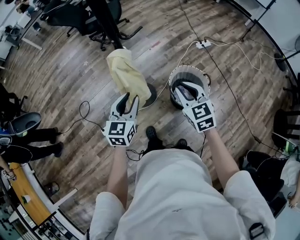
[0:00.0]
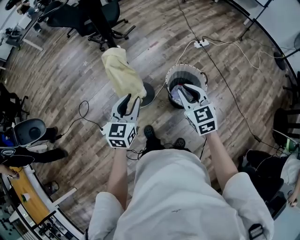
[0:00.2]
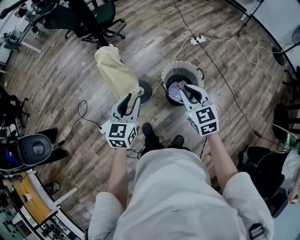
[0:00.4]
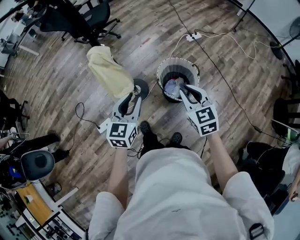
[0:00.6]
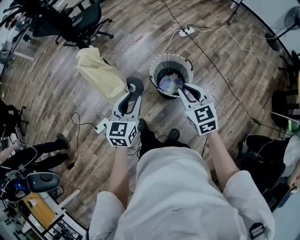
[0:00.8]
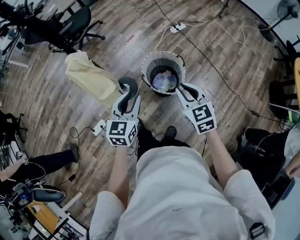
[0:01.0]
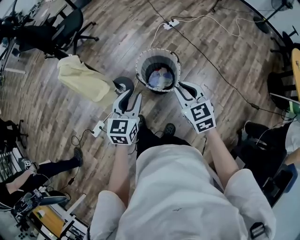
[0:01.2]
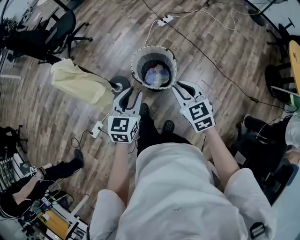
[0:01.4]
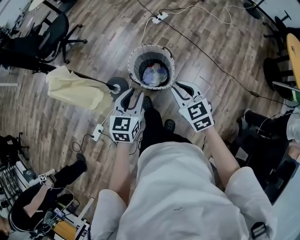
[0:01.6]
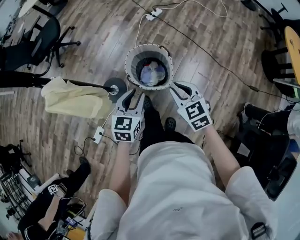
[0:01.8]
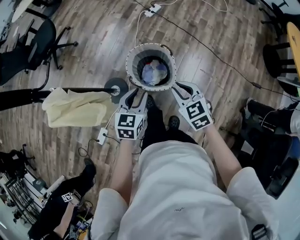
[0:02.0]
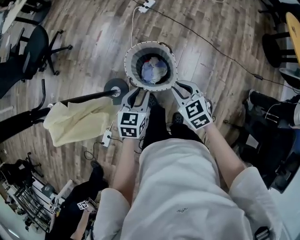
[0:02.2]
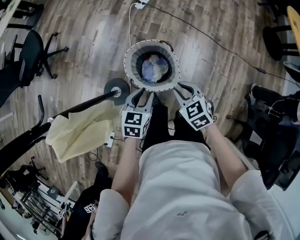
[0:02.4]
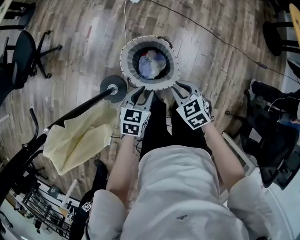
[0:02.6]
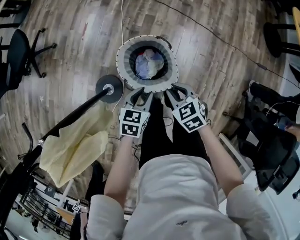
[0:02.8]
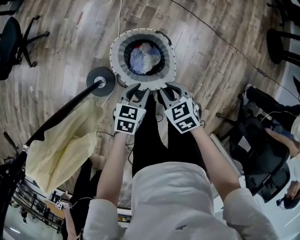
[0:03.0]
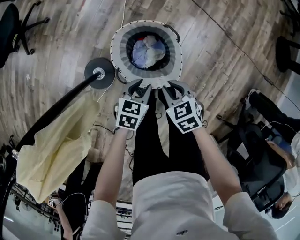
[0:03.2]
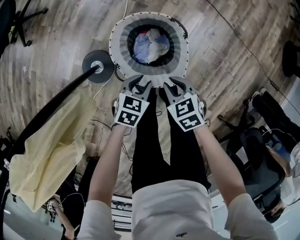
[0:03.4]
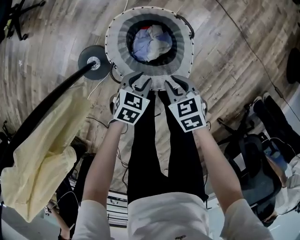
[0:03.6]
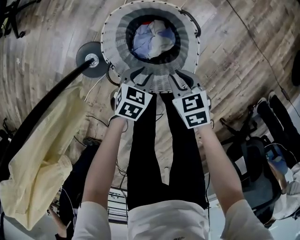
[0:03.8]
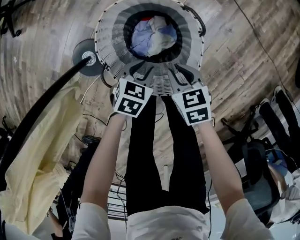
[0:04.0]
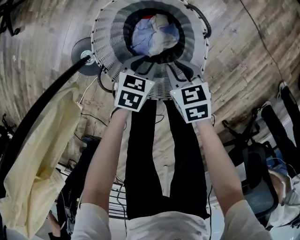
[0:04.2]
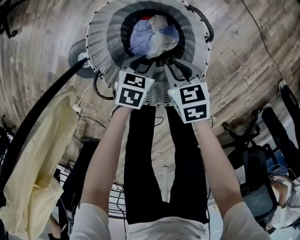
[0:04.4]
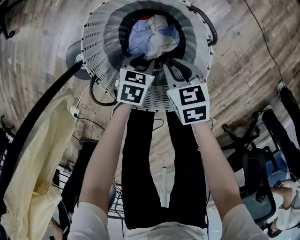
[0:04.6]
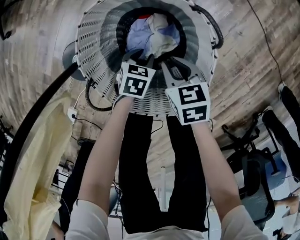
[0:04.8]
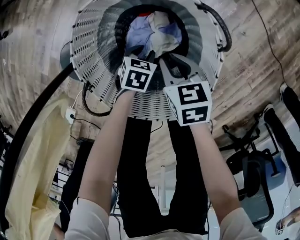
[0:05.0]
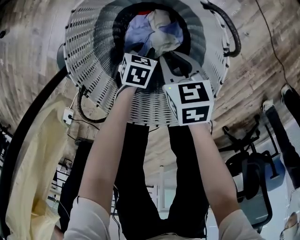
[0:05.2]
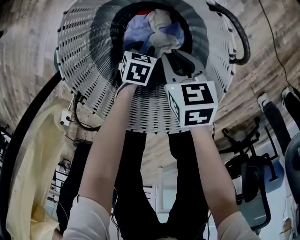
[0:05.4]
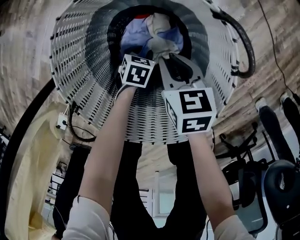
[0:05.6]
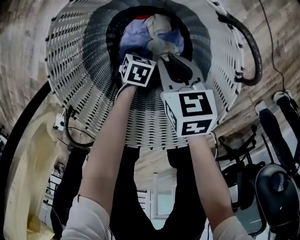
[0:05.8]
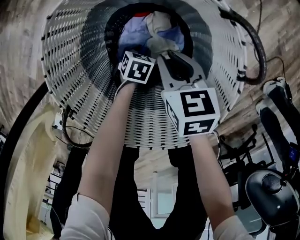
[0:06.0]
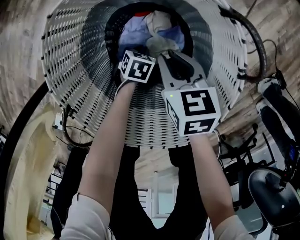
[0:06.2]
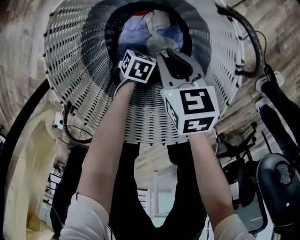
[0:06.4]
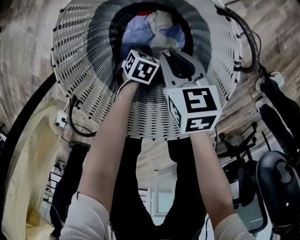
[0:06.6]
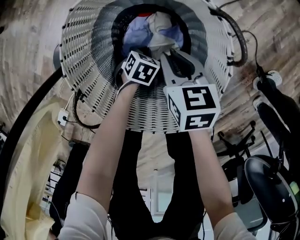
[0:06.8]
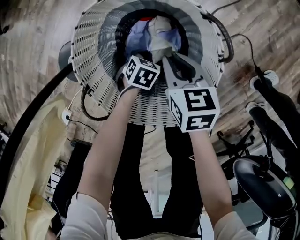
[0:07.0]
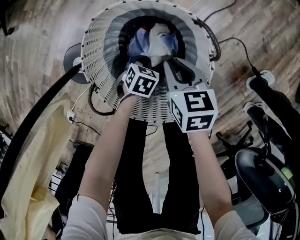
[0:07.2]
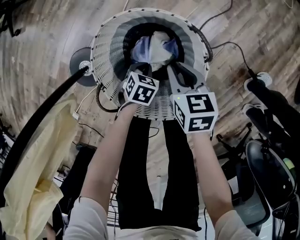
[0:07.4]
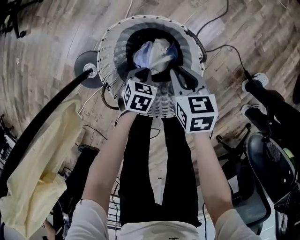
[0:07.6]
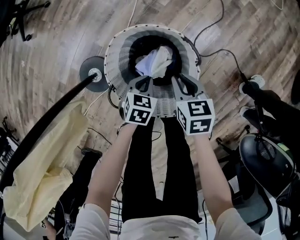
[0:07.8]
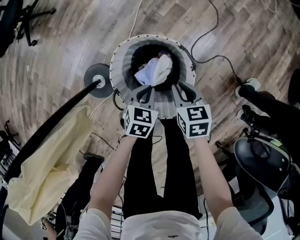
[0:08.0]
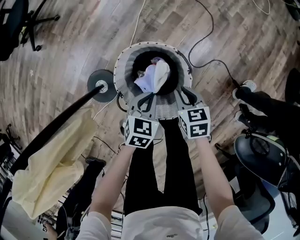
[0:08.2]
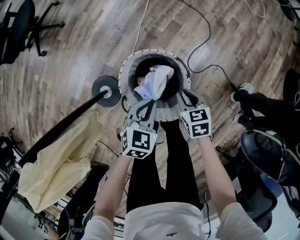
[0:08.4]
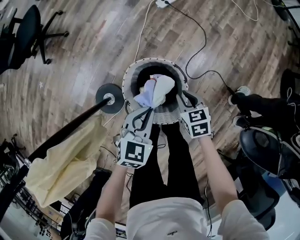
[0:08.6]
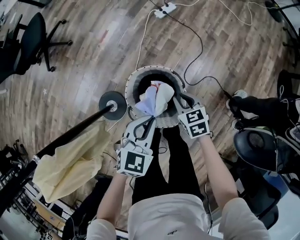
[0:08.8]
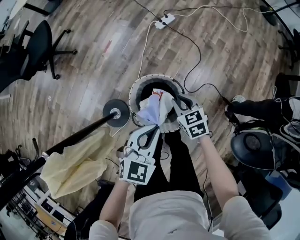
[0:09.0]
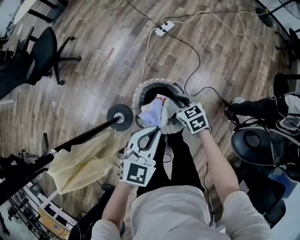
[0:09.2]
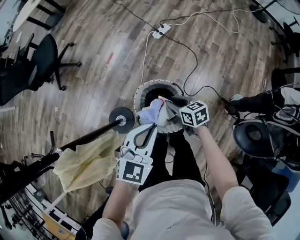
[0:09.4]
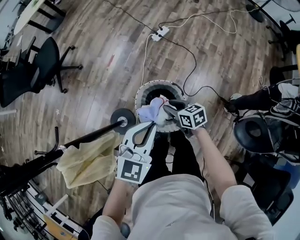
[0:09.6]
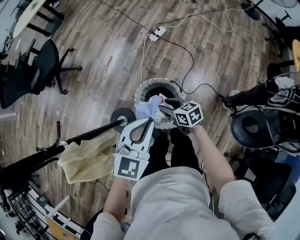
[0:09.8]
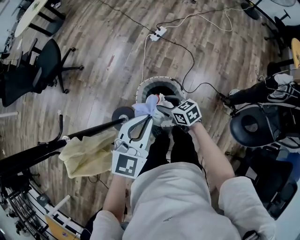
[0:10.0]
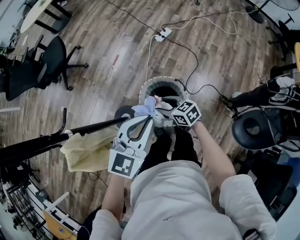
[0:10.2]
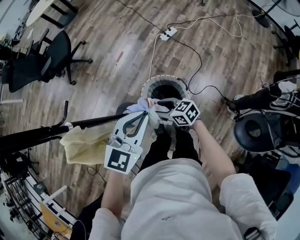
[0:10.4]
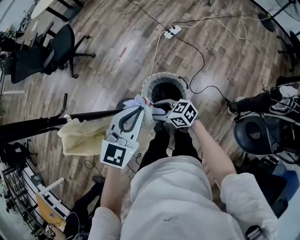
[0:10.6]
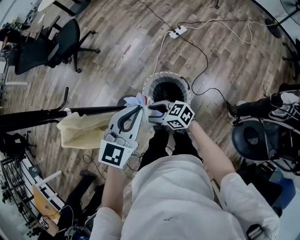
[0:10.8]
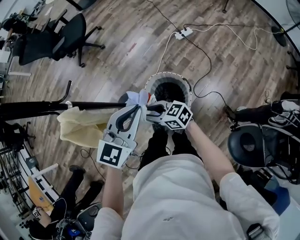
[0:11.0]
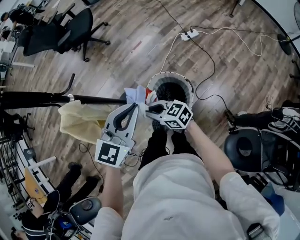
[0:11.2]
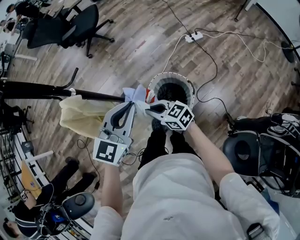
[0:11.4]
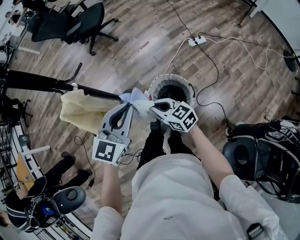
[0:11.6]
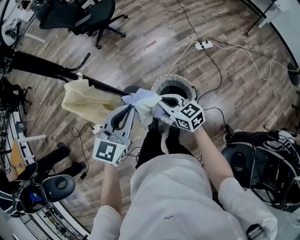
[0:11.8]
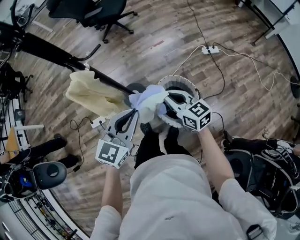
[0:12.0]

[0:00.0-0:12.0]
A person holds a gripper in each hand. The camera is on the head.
0:00.0 to 0:01.6: The left gripper travels to the right by some 25 cm, and changes its angle by approximately 20 degrees. Meanwhile the right gripper moves to the right and backward, roughly 25 cm.
0:01.6 to 0:03.0: The two grippers go about 30 cm downward and forward. The left gripper turns by some 30 degrees. Meanwhile the right gripper turns by roughly 30 degrees.
0:03.0 to 0:04.4: The two grippers go roughly 30 cm downward.
0:04.4 to 0:06.0: The right gripper shifts some 10 cm downward; the left gripper shifts some 25 cm downward.
0:06.0 to 0:07.6: The two grippers go roughly 20 cm upward. The left gripper closes.
0:07.6 to 0:09.0: The right gripper heads upward, covering roughly 25 cm, while the left gripper shifts some 50 cm upward, and tilts its fingers roughly 30 degrees upward.
0:09.0 to 0:10.4: The right gripper moves to the left, backward and upward, roughly 20 cm, turns by roughly 40 degrees, and opens up, while the left gripper goes about 20 cm upward and to the left.
0:10.4 to 0:12.0: The left gripper shifts some 10 cm to the left, and swivels roughly 40 degrees, while the right gripper is displaced upward by some 10 cm, swivels roughly 20 degrees, and closes up.

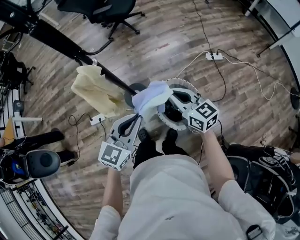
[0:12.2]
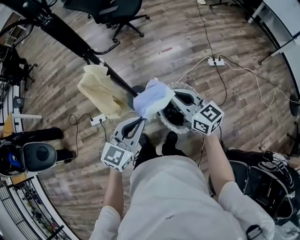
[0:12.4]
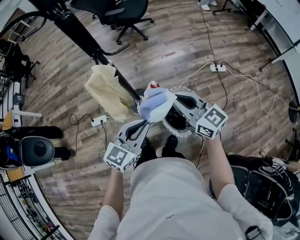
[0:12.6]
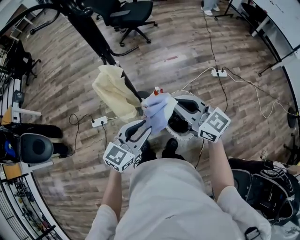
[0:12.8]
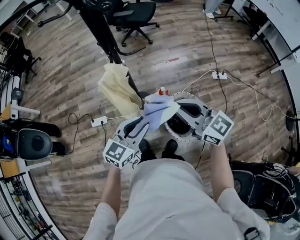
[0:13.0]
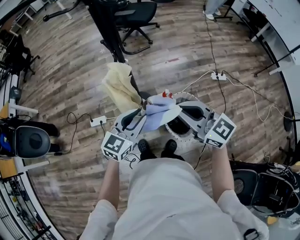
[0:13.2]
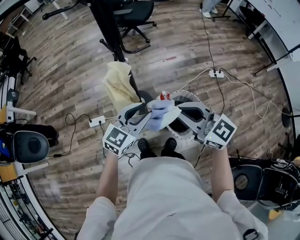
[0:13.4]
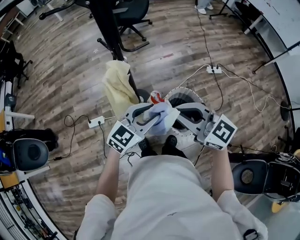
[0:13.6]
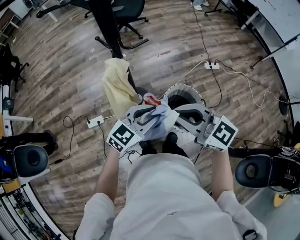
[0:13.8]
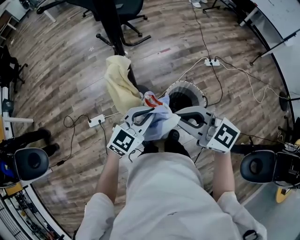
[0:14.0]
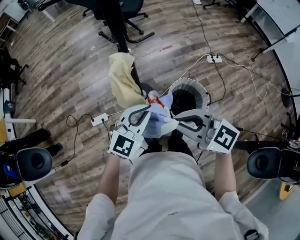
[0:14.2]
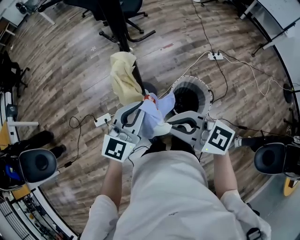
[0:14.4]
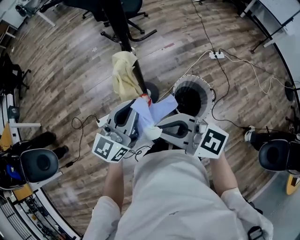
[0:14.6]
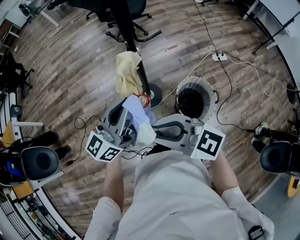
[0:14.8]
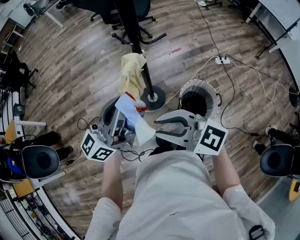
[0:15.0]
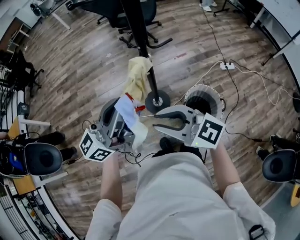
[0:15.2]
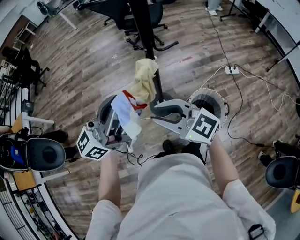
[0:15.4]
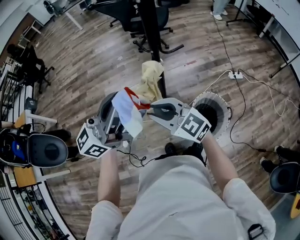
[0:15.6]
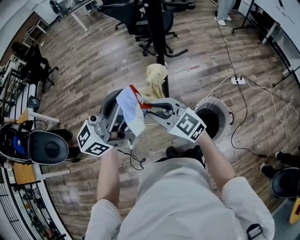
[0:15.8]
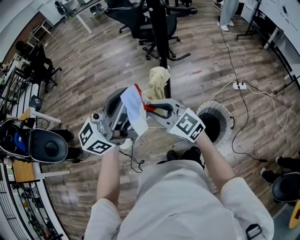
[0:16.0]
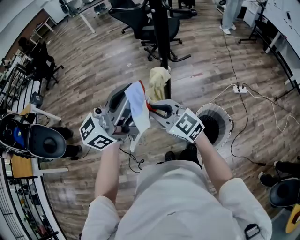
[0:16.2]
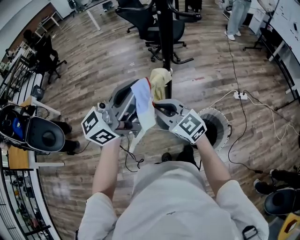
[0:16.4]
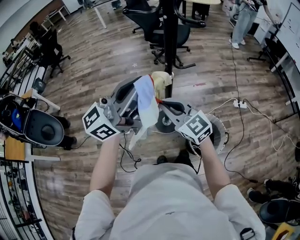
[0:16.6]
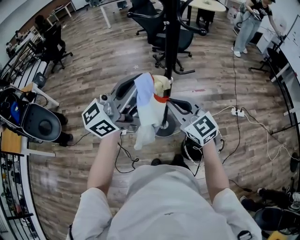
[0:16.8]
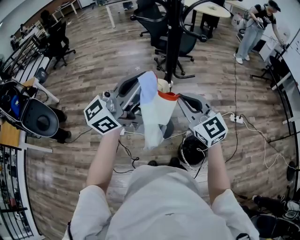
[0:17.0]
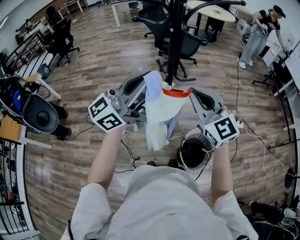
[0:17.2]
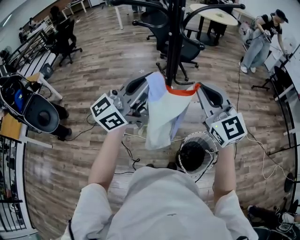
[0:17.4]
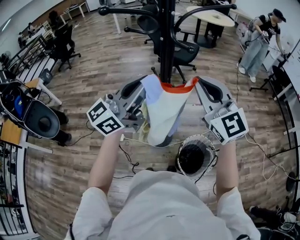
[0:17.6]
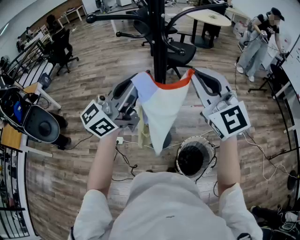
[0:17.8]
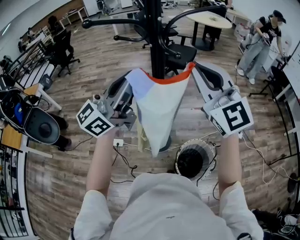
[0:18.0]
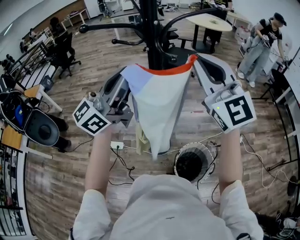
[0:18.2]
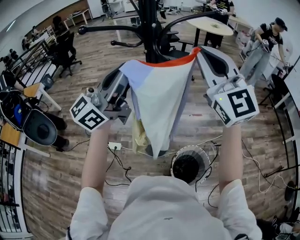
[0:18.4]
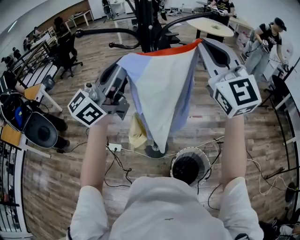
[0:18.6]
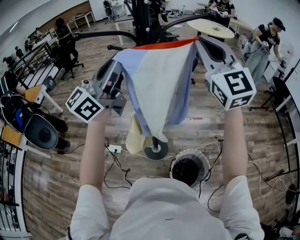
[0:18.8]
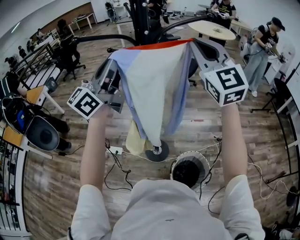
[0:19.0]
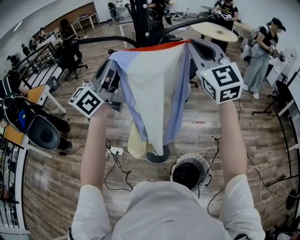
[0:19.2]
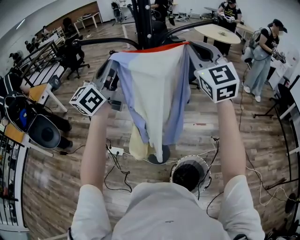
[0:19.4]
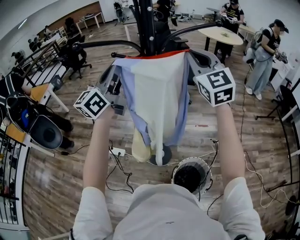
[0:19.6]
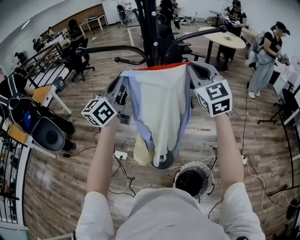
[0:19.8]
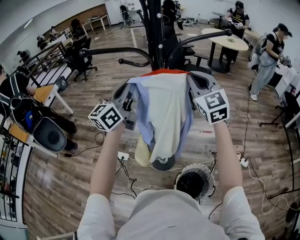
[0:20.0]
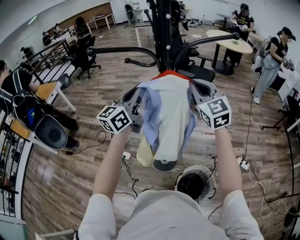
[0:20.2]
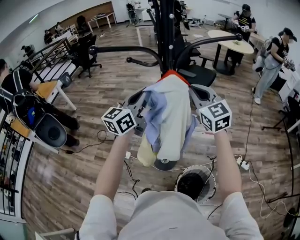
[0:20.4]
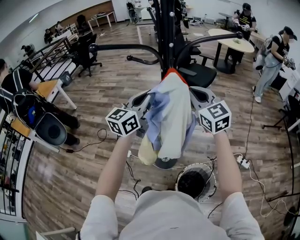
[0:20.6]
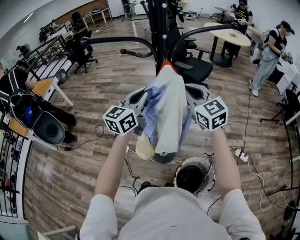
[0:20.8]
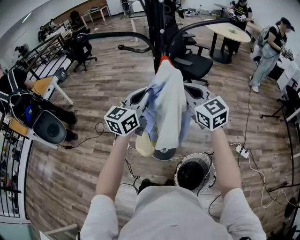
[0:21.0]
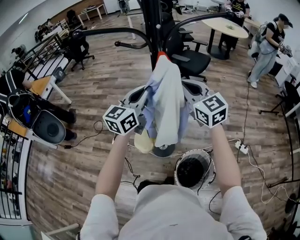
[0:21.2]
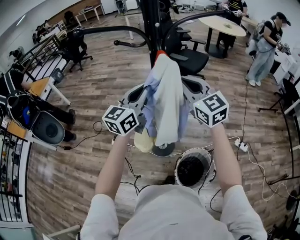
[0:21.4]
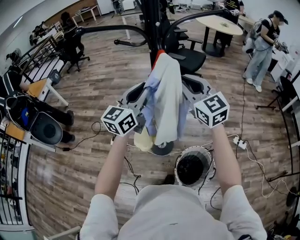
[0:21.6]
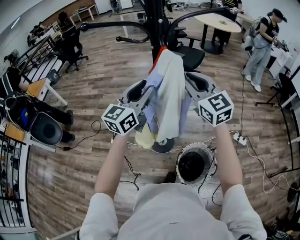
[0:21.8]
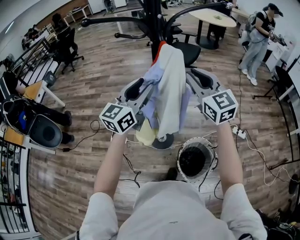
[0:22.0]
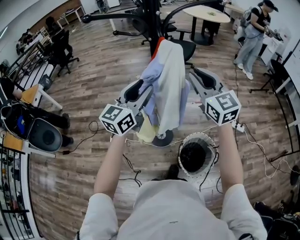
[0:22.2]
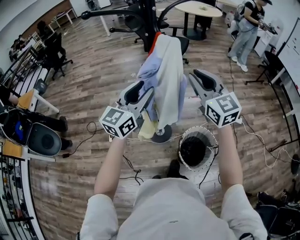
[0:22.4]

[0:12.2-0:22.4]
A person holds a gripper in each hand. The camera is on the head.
0:12.2 to 0:13.6: The right gripper travels to the left, upward and backward by about 20 cm, and turns by approximately 20 degrees; the left gripper travels to the left by roughly 5 cm, and opens its fingers.
0:13.6 to 0:15.2: The right gripper is displaced to the left by about 15 cm, and opens up; the left gripper shifts roughly 25 cm to the left and upward, points its fingers roughly 40 degrees further upward, and closes up.
0:15.2 to 0:16.6: The left gripper travels upward by about 10 cm, while the right gripper heads forward, covering approximately 10 cm, and closes its fingers.
0:16.6 to 0:18.0: The left gripper moves forward, to the right and upward, some 10 cm; the right gripper goes approximately 30 cm upward and to the right, and rotates approximately 30 degrees.
0:18.0 to 0:19.4: The left gripper shifts roughly 10 cm forward and to the left, and changes its angle by roughly 20 degrees. Meanwhile the right gripper moves forward, about 15 cm.
0:19.4 to 0:21.0: The left gripper moves downward and to the right, approximately 20 cm, and changes its angle by some 20 degrees, while the right gripper goes roughly 20 cm downward, and changes its angle by some 30 degrees.
0:21.0 to 0:22.4: The grippers both shift backward by about 10 cm. The right gripper changes its angle by about 20 degrees. Meanwhile the left gripper opens its fingers.

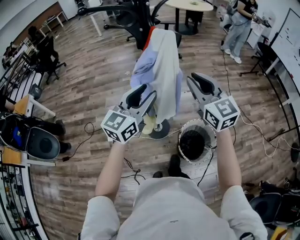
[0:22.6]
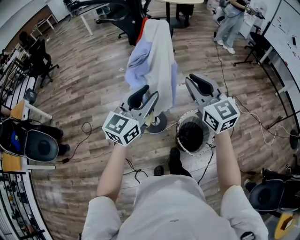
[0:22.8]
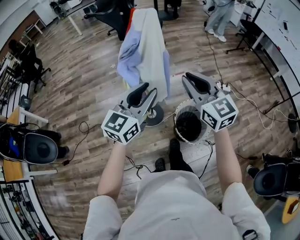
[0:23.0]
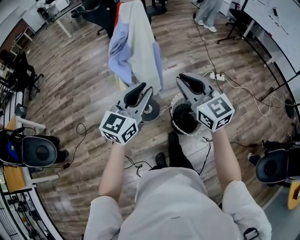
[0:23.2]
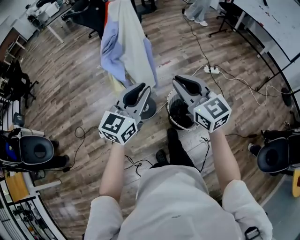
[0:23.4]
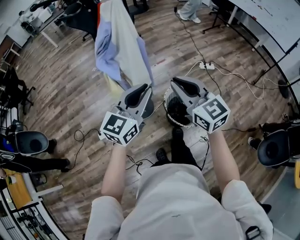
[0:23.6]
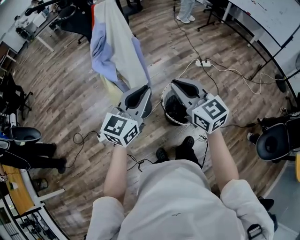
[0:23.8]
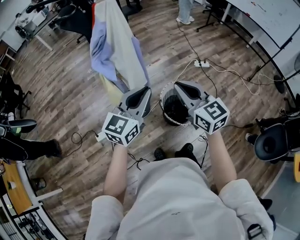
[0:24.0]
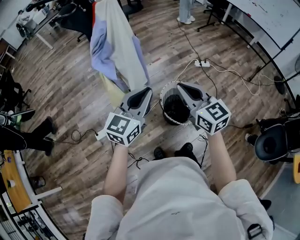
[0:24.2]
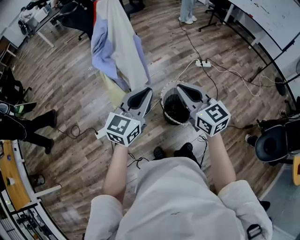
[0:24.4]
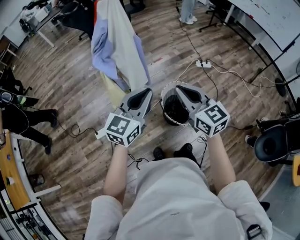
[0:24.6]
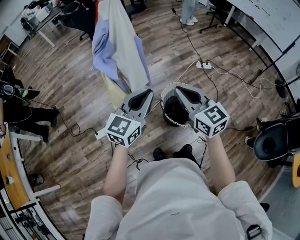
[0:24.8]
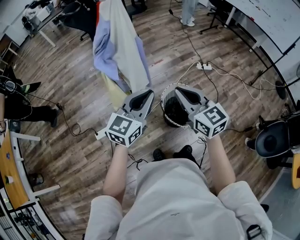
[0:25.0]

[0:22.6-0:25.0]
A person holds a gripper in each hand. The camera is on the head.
0:22.6 to 0:23.8: The left gripper travels backward, to the right and downward by about 15 cm, swivels about 20 degrees, and closes; the right gripper travels backward and downward by approximately 20 cm.
0:23.8 to 0:25.0: The grippers make only small movements.
